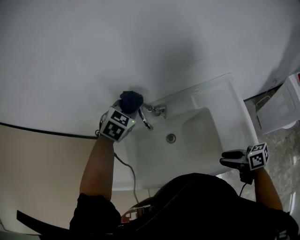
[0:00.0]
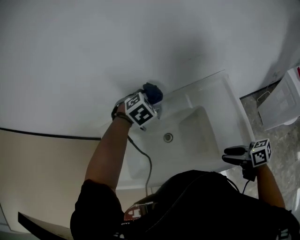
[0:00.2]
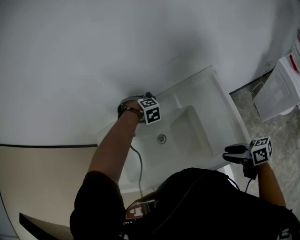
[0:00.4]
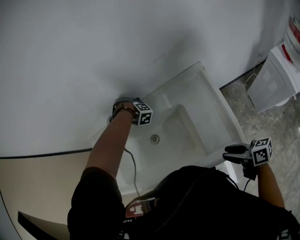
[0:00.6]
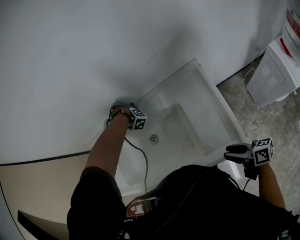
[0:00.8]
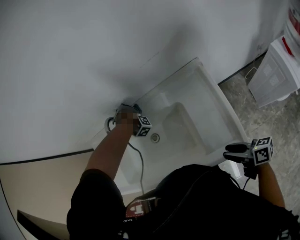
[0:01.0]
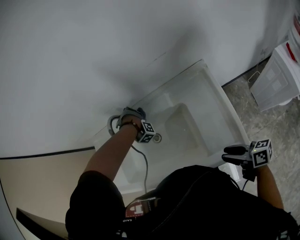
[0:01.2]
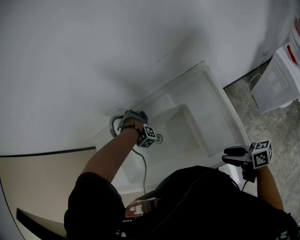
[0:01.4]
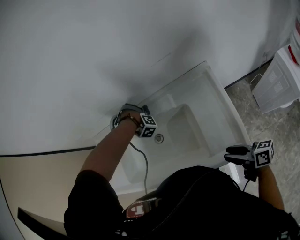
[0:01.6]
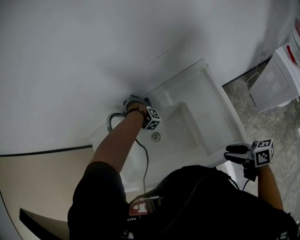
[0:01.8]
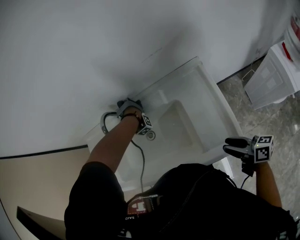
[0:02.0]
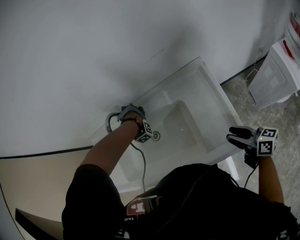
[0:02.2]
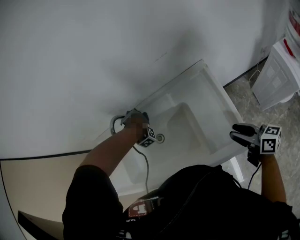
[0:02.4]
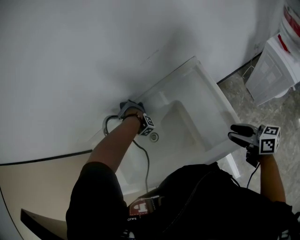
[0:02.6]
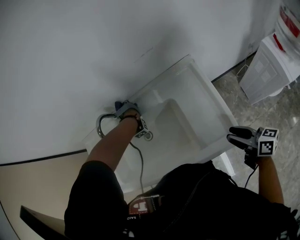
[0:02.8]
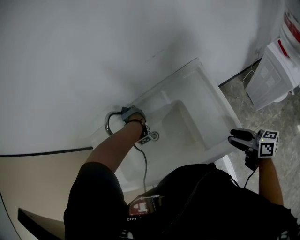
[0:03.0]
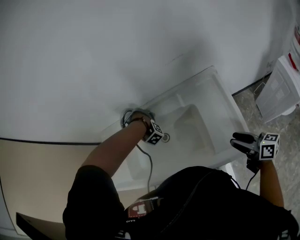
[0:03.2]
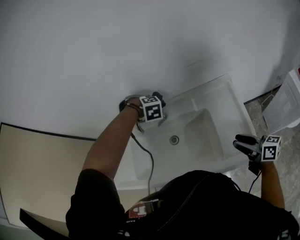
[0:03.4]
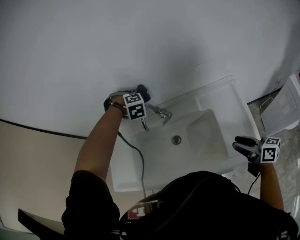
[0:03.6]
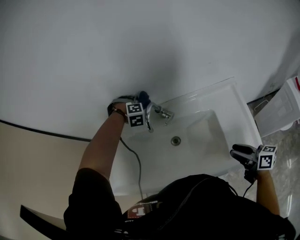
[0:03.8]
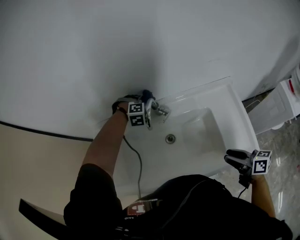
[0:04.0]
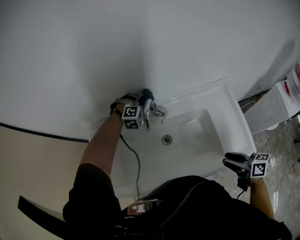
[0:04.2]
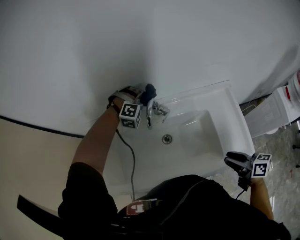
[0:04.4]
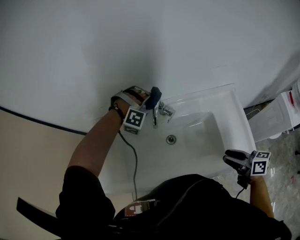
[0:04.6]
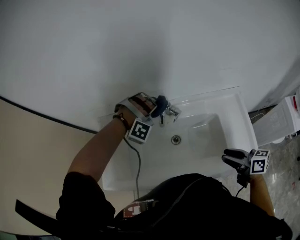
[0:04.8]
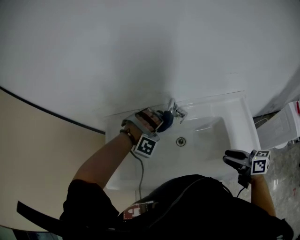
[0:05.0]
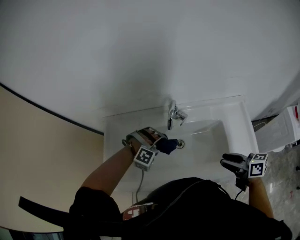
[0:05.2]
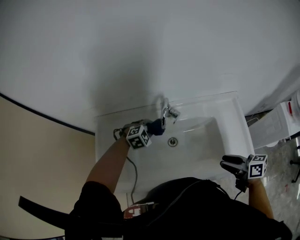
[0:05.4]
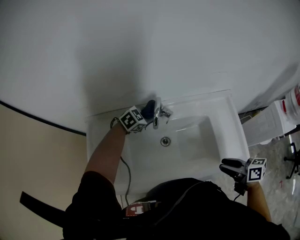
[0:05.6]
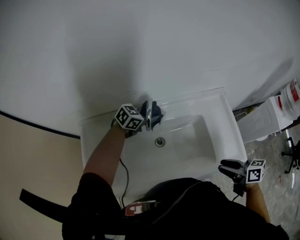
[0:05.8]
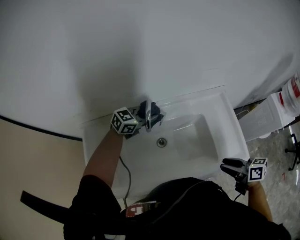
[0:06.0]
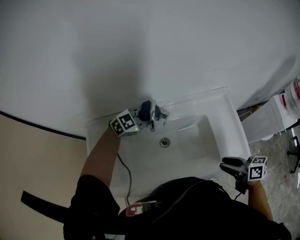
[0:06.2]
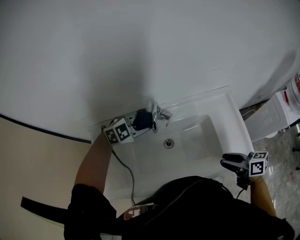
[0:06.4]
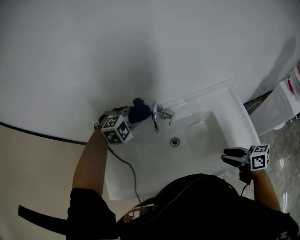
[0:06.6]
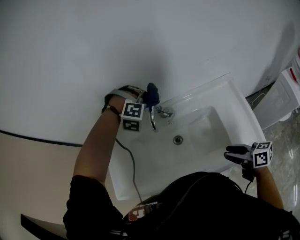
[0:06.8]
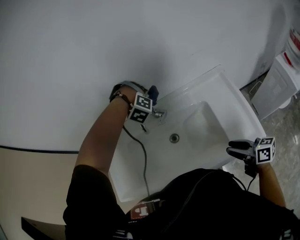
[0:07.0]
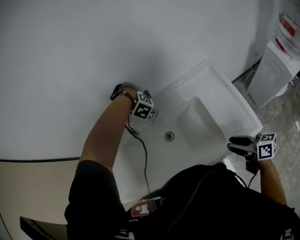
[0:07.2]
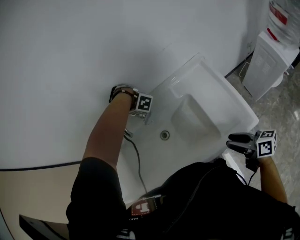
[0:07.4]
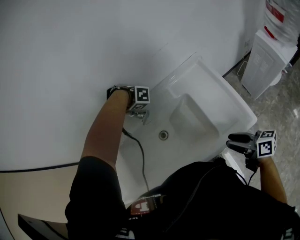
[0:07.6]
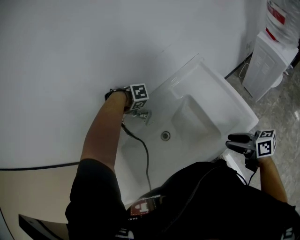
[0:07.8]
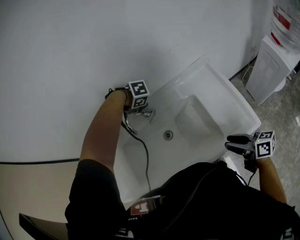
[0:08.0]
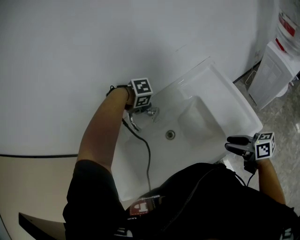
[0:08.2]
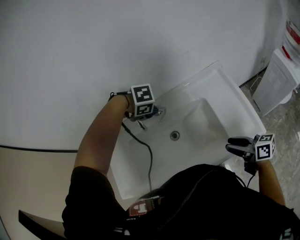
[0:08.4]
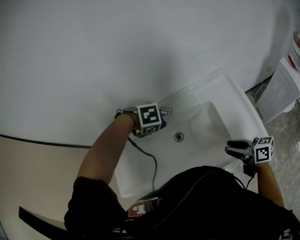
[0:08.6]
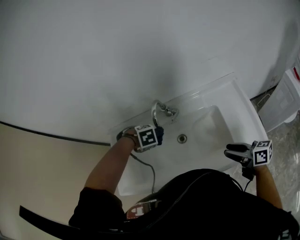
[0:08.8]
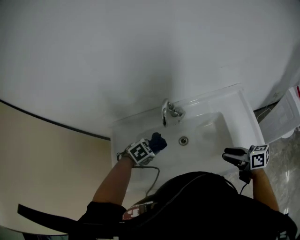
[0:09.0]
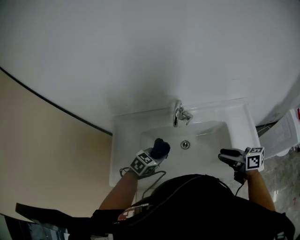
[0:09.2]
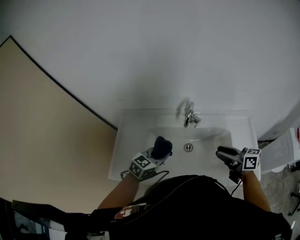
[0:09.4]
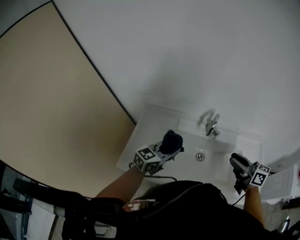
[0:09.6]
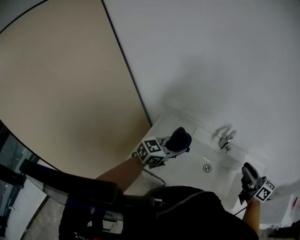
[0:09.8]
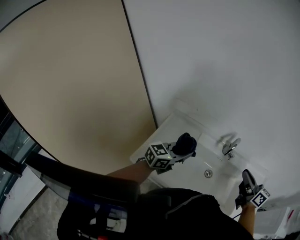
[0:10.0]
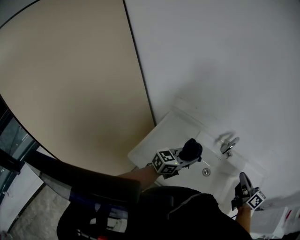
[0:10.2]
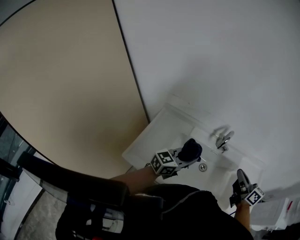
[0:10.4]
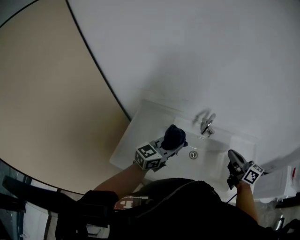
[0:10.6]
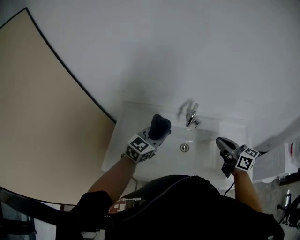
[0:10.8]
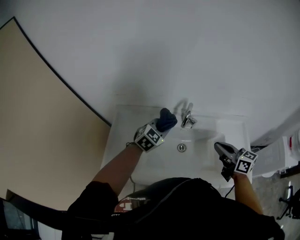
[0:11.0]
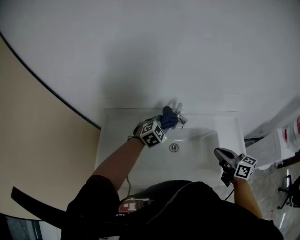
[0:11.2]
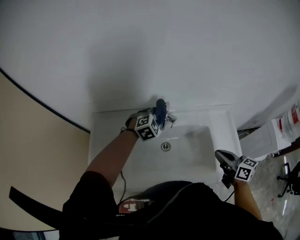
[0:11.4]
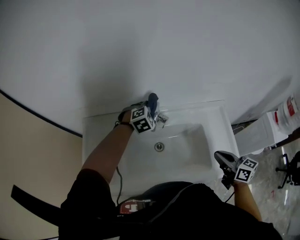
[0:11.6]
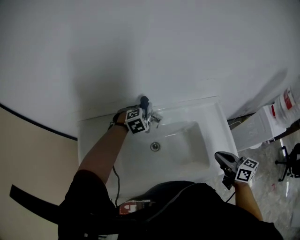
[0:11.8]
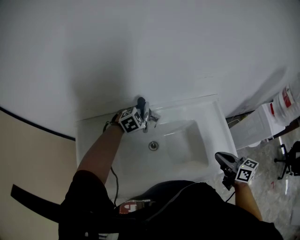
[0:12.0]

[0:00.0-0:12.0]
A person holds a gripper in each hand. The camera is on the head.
0.0 to 1.6 s: The right gripper moves some 10 cm, while the left gripper travels downward by roughly 20 cm, and changes its angle by about 100 degrees.
1.6 to 3.0 s: The right gripper changes place by approximately 5 cm. Meanwhile the left gripper moves left and right over roughly 10 cm, changing direction 3 times, and changes its angle by some 40 degrees.
3.0 to 4.4 s: The right gripper moves some 20 cm; the left gripper moves up and down over about 20 cm, changing direction 2 times, and rotates roughly 100 degrees.
4.4 to 6.0 s: The left gripper swings up and down, approximately 15 cm each way, with 2 reversals, and rotates around the line of its fingers by roughly 70 degrees, counterclockwise from behind.
6.0 to 7.6 s: The left gripper reaches approximately 10 cm upward, then returns, and rotates about 120 degrees. Meanwhile the right gripper ends up some 10 cm from where it was.
7.6 to 9.0 s: The left gripper moves some 10 cm upward and comes back, and changes its angle by approximately 70 degrees. Meanwhile the right gripper moves some 15 cm.
9.0 to 10.4 s: The right gripper heads upward, to the left and forward, covering about 15 cm, changes its angle by about 20 degrees, and closes up, while the left gripper goes about 15 cm upward, and tips its fingers upward by roughly 70 degrees.
10.4 to 12.0 s: The left gripper goes some 30 cm forward, to the right and downward, and angles its fingers downward, by about 50 degrees; the right gripper goes some 20 cm to the right and downward, and rotates about 30 degrees.

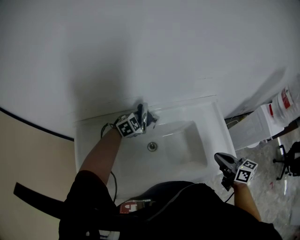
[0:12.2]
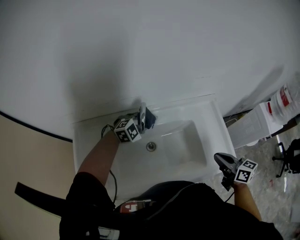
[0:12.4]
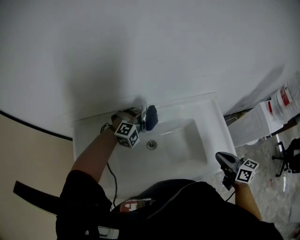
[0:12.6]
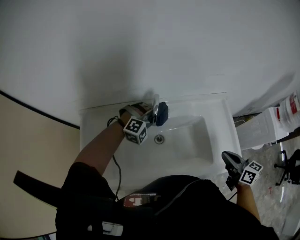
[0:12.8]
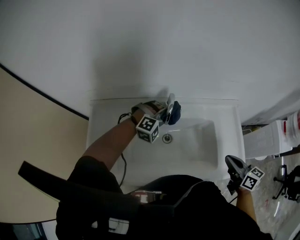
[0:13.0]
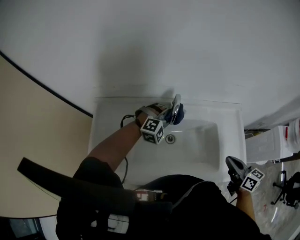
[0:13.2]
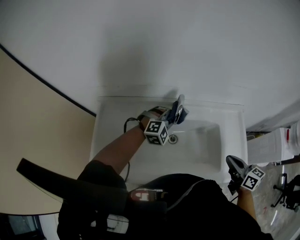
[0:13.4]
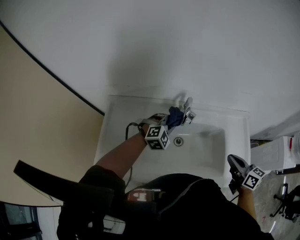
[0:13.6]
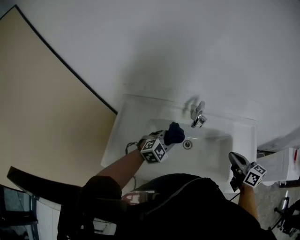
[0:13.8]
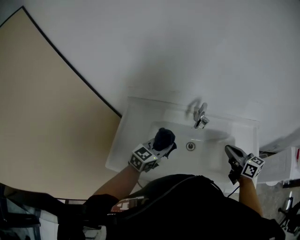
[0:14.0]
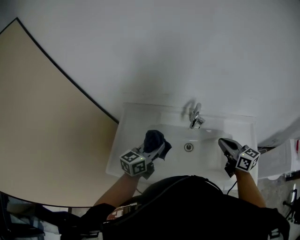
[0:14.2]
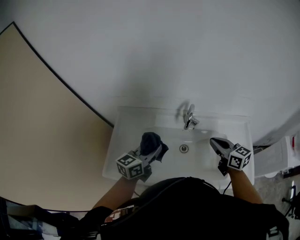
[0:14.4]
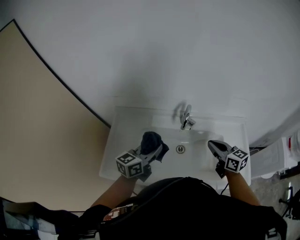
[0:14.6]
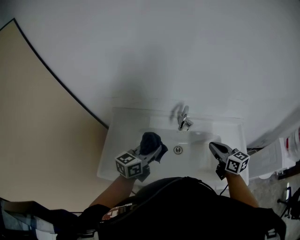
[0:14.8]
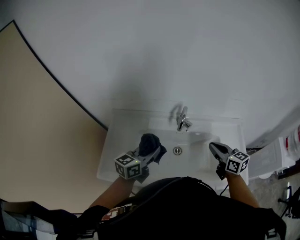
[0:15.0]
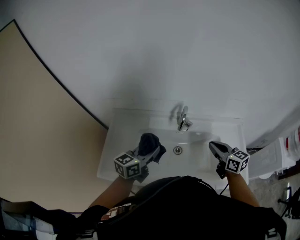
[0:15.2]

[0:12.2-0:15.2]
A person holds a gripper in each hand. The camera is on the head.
12.2 to 13.8 s: The right gripper goes approximately 10 cm to the left, while the left gripper goes roughly 15 cm backward and to the left, and rotates roughly 20 degrees.
13.8 to 15.2 s: The left gripper is displaced upward by about 10 cm, and rotates around the line of its fingers by approximately 50 degrees, counterclockwise from behind.

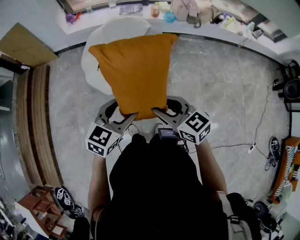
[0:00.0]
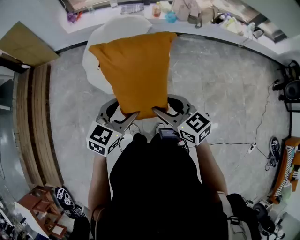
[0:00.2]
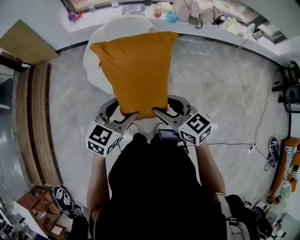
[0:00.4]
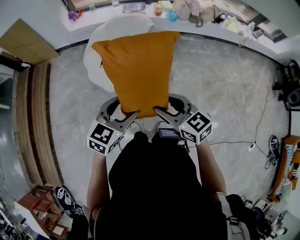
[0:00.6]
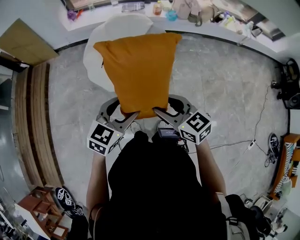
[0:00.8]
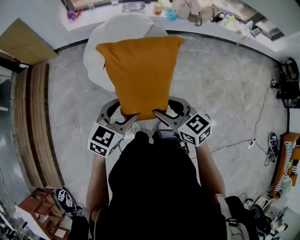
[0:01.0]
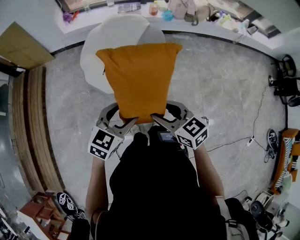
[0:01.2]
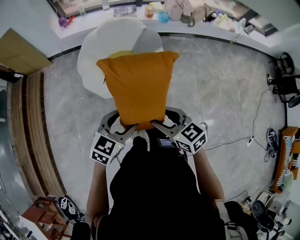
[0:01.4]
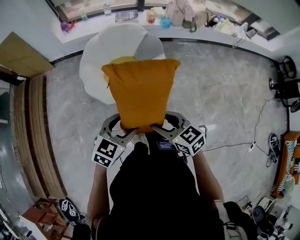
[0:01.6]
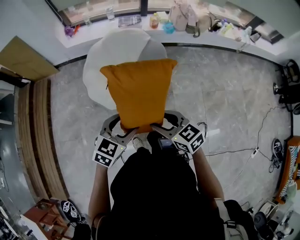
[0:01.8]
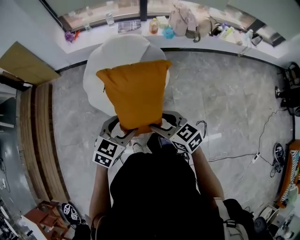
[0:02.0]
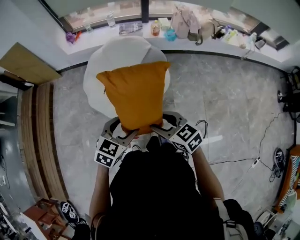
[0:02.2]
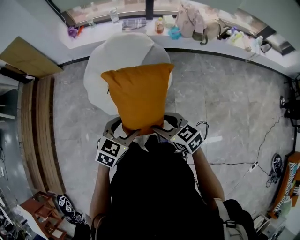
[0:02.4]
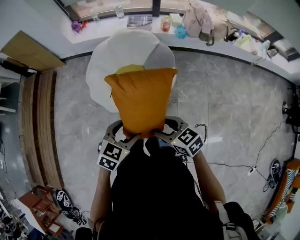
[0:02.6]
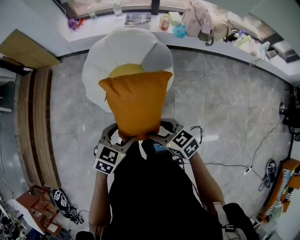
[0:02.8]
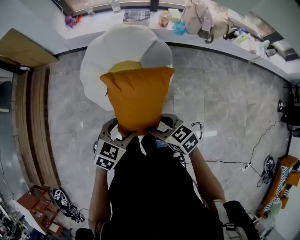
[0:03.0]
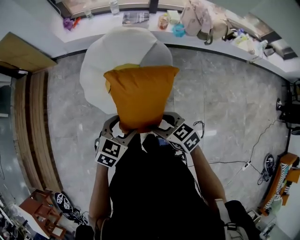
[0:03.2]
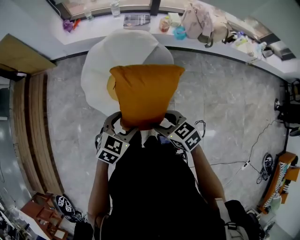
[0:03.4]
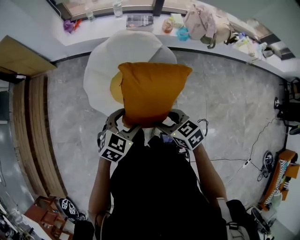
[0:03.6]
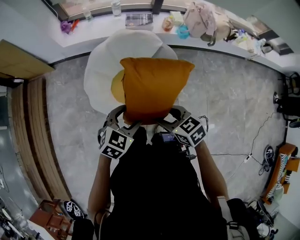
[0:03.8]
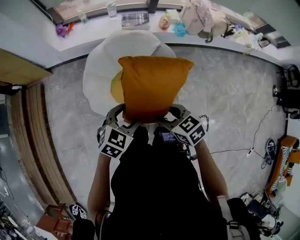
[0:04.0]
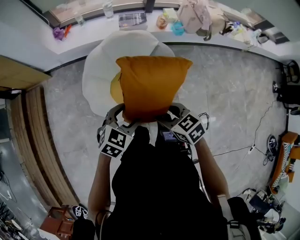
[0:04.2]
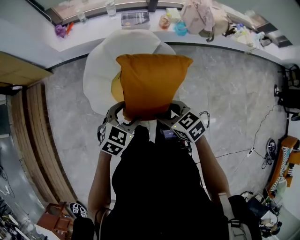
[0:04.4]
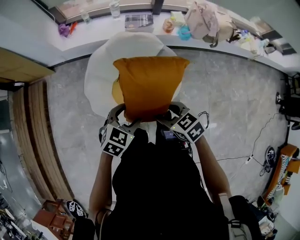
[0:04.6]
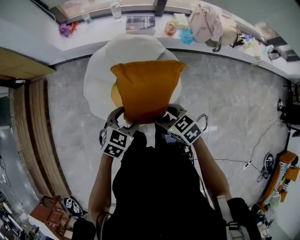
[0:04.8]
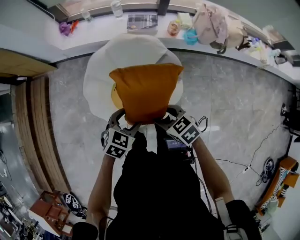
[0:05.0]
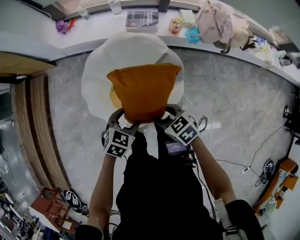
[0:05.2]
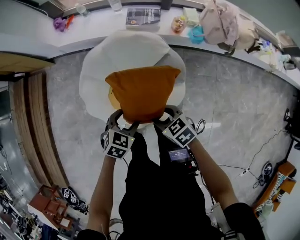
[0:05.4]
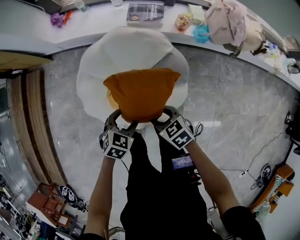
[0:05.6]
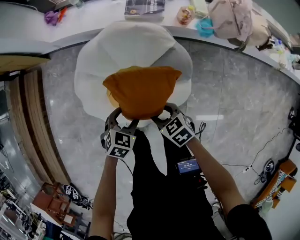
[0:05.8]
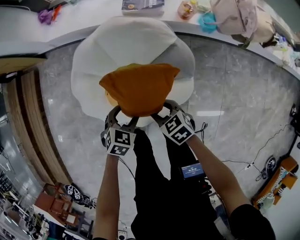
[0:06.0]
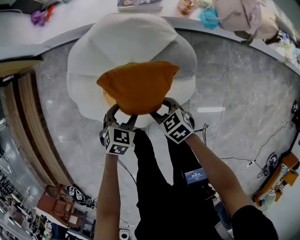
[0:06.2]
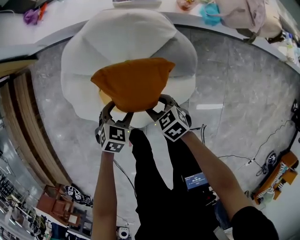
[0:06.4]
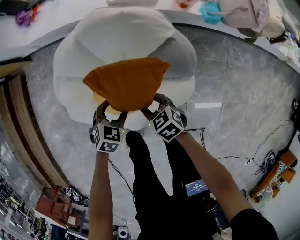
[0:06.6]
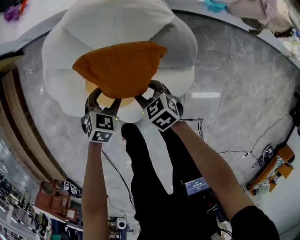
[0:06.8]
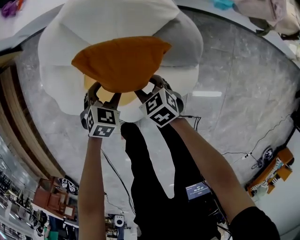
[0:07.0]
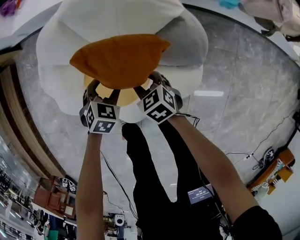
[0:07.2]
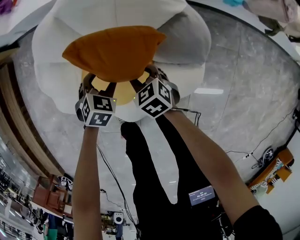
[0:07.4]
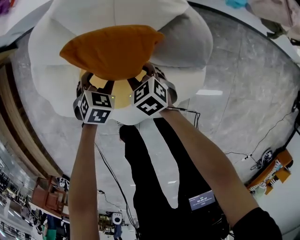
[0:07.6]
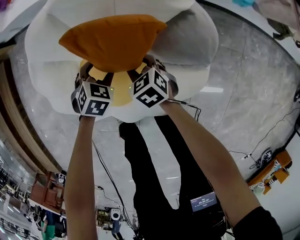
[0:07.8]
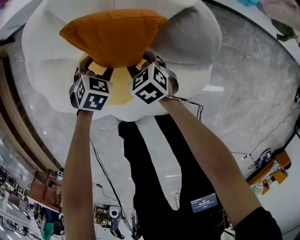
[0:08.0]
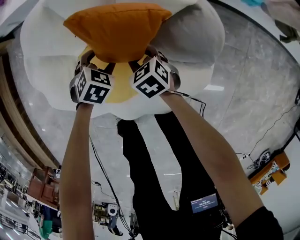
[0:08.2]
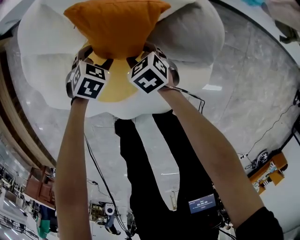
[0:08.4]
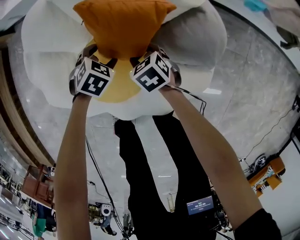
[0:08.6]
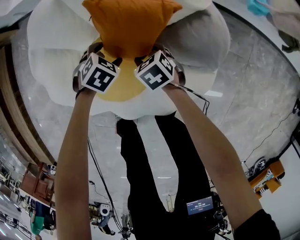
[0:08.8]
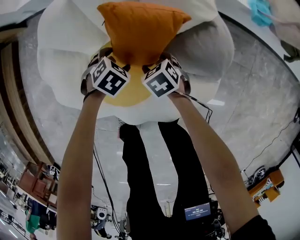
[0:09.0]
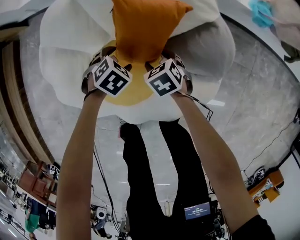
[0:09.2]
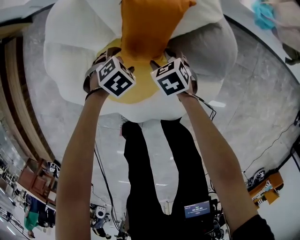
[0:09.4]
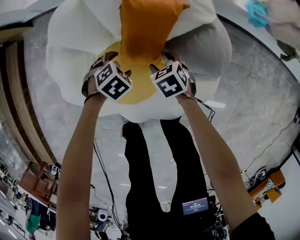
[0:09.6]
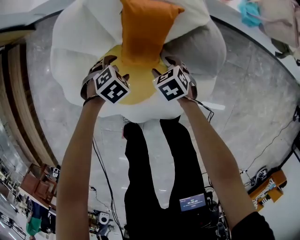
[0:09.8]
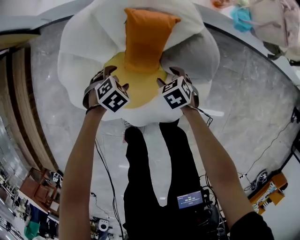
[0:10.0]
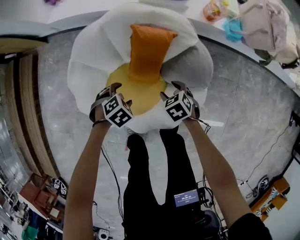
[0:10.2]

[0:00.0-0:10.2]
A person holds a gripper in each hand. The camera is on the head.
0.0 to 1.4 s: The left gripper moves approximately 5 cm. The right gripper changes place by approximately 5 cm.
1.4 to 3.0 s: The grippers both shift forward and to the right by some 20 cm.
3.0 to 4.4 s: The grippers both shift forward and to the left by roughly 20 cm.
4.4 to 5.8 s: The left gripper is displaced downward and forward by some 25 cm, and rotates roughly 20 degrees; the right gripper heads downward, forward and to the right, covering approximately 30 cm.
5.8 to 7.2 s: Both grippers travel together downward, approximately 25 cm.
7.2 to 8.8 s: The two grippers go roughly 10 cm downward.
8.8 to 10.2 s: Both grippers move upward, approximately 15 cm.
